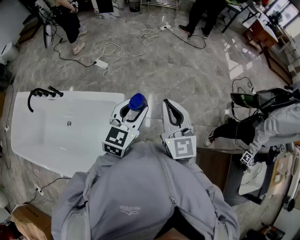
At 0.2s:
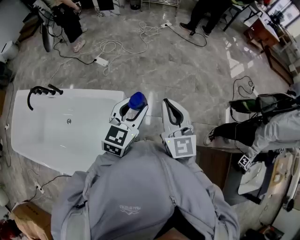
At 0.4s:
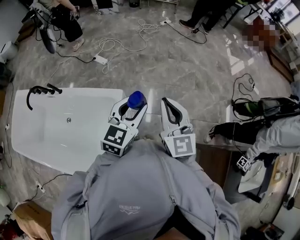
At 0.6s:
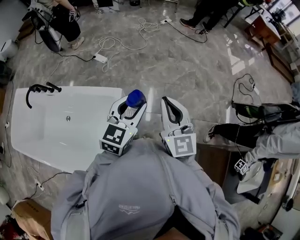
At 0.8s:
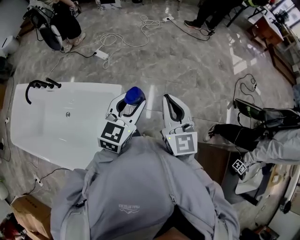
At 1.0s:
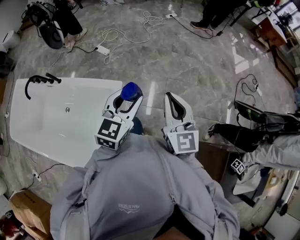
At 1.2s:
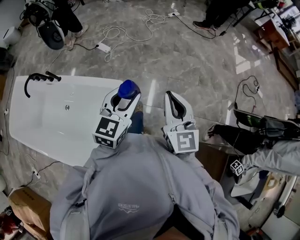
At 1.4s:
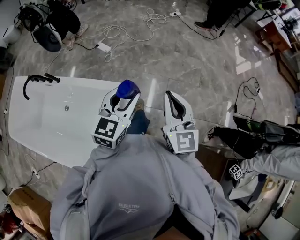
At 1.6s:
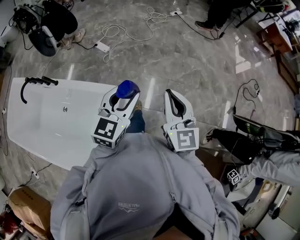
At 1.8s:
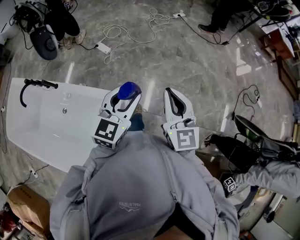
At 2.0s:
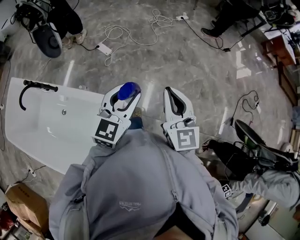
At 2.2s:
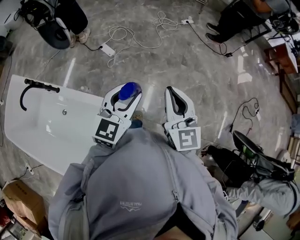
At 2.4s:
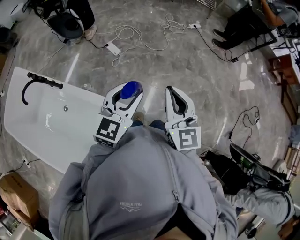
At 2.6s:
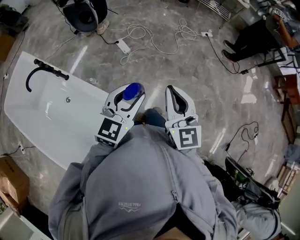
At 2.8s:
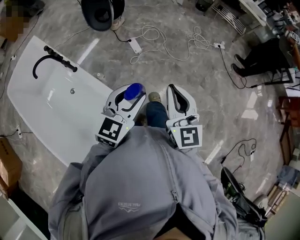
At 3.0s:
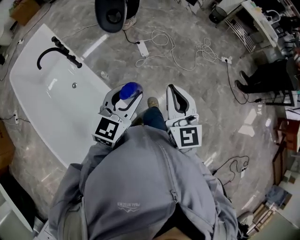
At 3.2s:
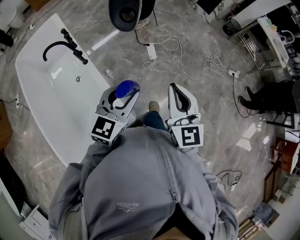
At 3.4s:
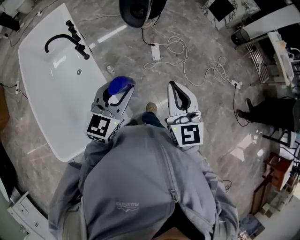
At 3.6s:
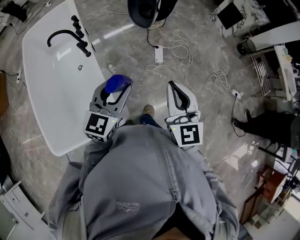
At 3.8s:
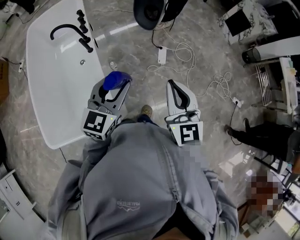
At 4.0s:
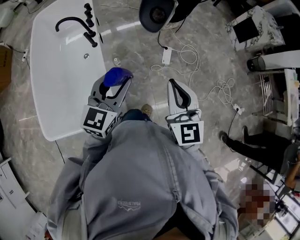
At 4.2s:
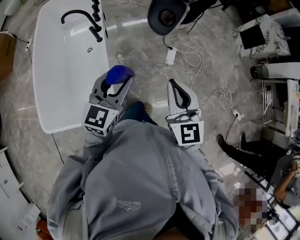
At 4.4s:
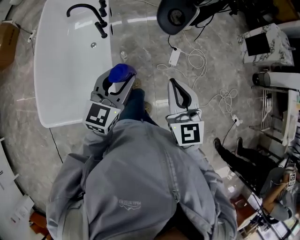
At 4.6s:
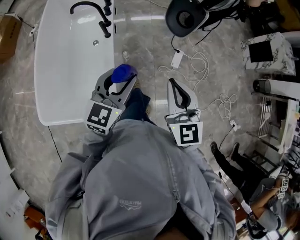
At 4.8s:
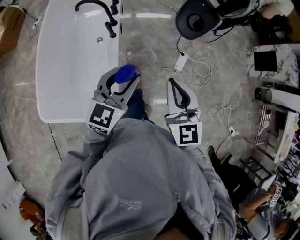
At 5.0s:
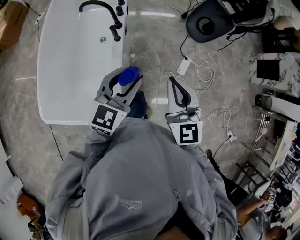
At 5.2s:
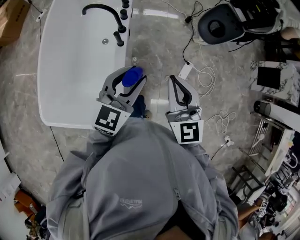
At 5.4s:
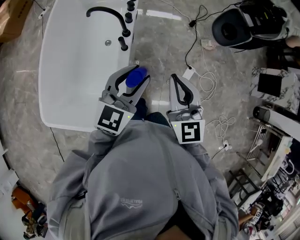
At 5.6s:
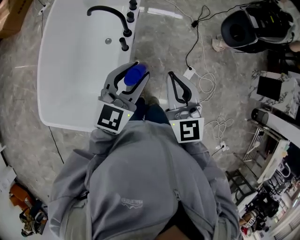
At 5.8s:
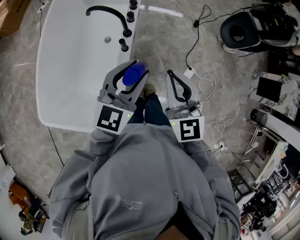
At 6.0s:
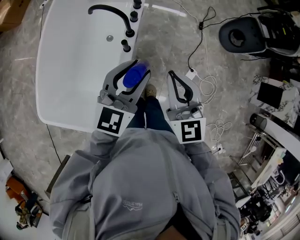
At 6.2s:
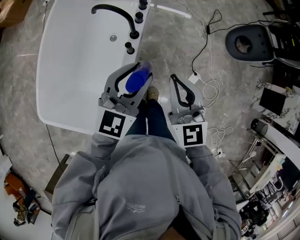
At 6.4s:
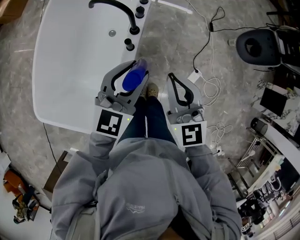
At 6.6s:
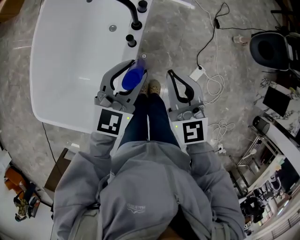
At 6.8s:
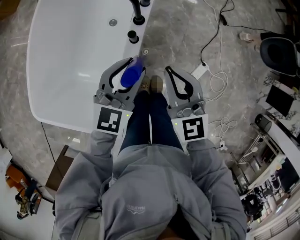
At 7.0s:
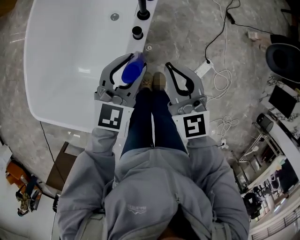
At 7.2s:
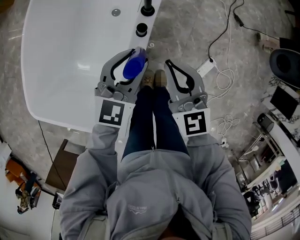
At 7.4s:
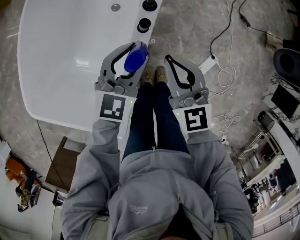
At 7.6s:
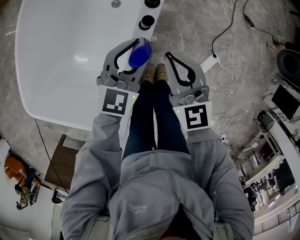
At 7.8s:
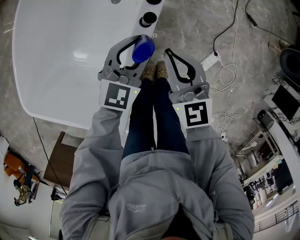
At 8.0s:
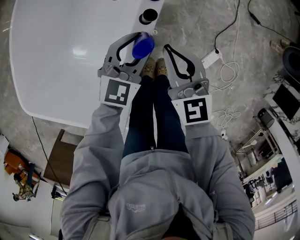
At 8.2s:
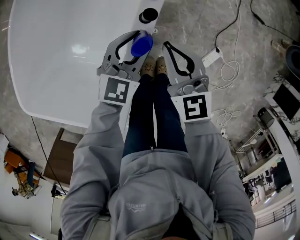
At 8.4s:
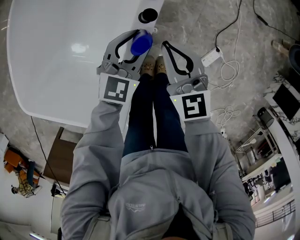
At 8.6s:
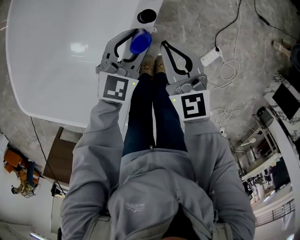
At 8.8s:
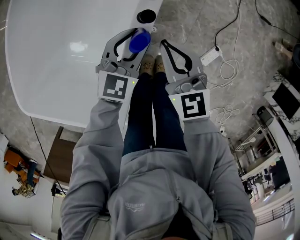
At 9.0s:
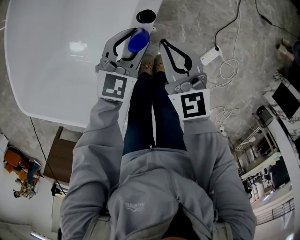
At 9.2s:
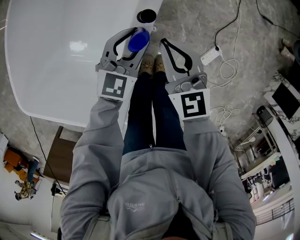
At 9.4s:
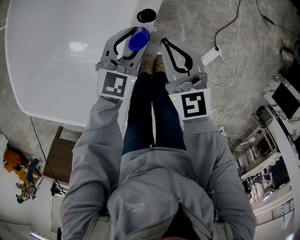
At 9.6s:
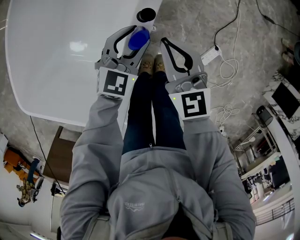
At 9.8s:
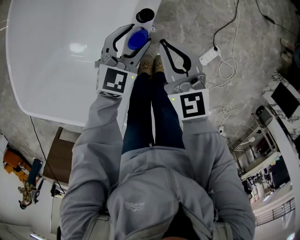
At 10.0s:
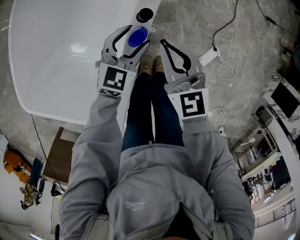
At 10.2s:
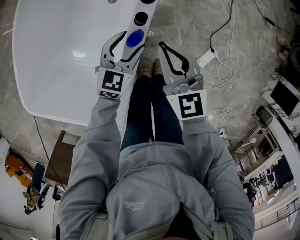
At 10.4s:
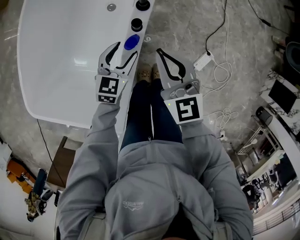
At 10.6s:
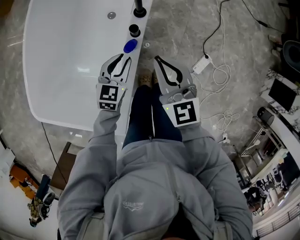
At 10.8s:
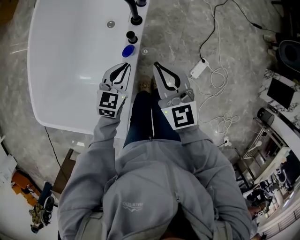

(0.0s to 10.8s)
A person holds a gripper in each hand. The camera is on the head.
0.0s - 1.6s: The grippers both shift forward by roughly 10 cm.
1.6s - 3.0s: The left gripper moves some 25 cm, and rotates approximately 30 degrees. Meanwhile the right gripper shifts by approximately 30 cm, and rotates some 30 degrees.
3.0s - 4.6s: The right gripper shifts by about 20 cm, and rotates some 40 degrees. The left gripper ends up some 20 cm from where it was, and turns by some 40 degrees.
4.6s - 6.2s: The right gripper heads forward and to the left, covering roughly 30 cm, while the left gripper shifts approximately 25 cm forward.
6.2s - 7.8s: Both grippers move downward, roughly 25 cm.
7.8s - 9.2s: The grippers make only small movements.
9.2s - 10.8s: The left gripper is displaced upward and backward by some 10 cm, and closes. The right gripper is displaced upward by some 15 cm.

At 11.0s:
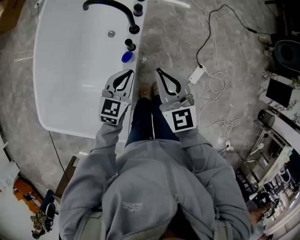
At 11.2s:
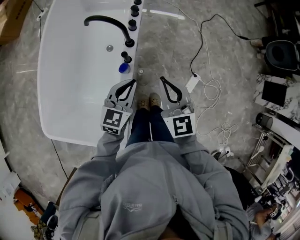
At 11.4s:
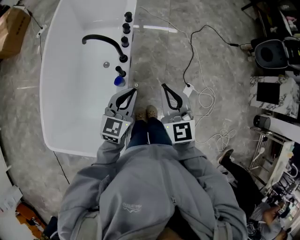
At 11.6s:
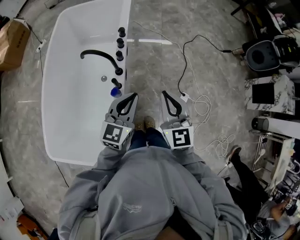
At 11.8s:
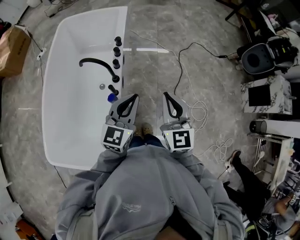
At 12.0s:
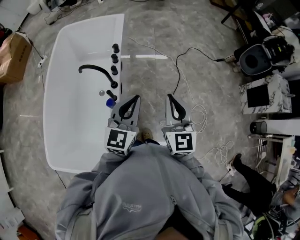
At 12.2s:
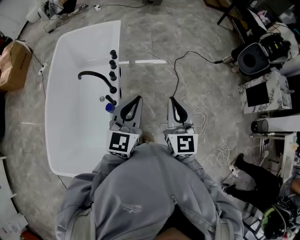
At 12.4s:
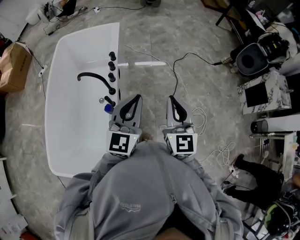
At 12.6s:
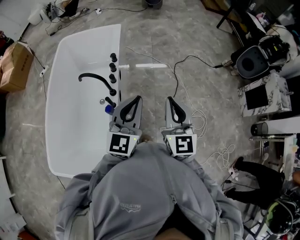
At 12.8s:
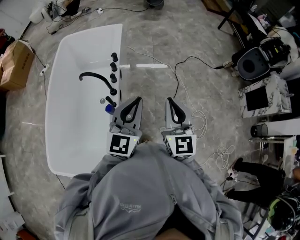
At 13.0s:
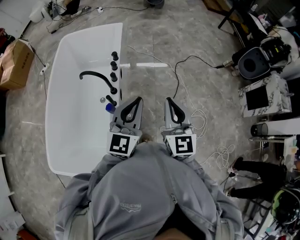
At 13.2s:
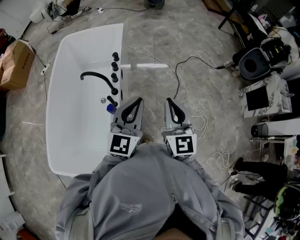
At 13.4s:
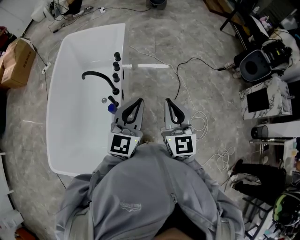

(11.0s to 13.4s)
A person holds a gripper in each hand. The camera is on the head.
11.0s - 12.2s: Both grippers move upward and to the right, about 30 cm. The left gripper turns by roughly 30 degrees, while the right gripper changes its angle by some 30 degrees.
12.2s - 13.4s: The grippers make only small movements.

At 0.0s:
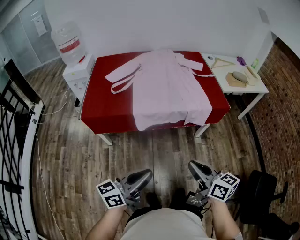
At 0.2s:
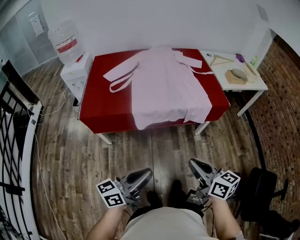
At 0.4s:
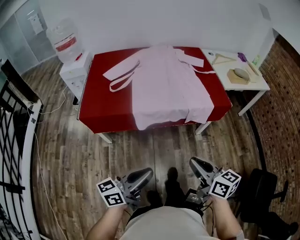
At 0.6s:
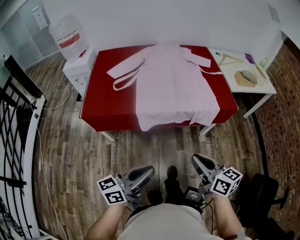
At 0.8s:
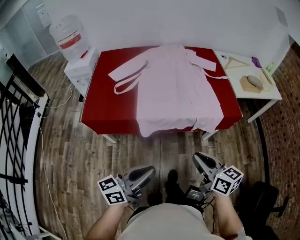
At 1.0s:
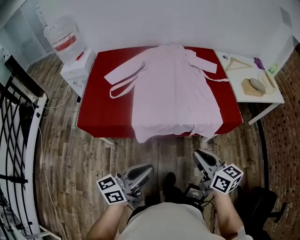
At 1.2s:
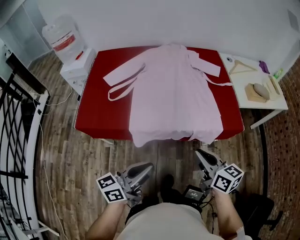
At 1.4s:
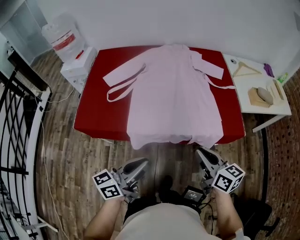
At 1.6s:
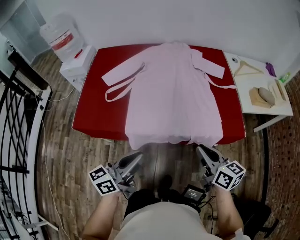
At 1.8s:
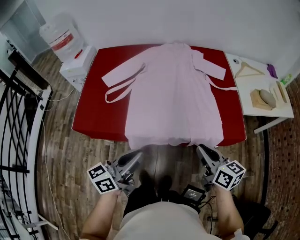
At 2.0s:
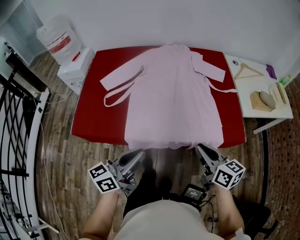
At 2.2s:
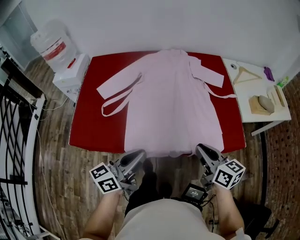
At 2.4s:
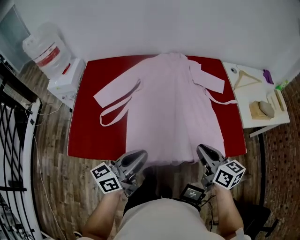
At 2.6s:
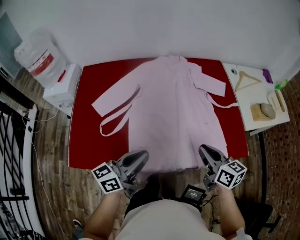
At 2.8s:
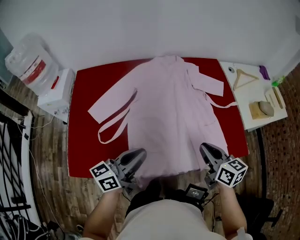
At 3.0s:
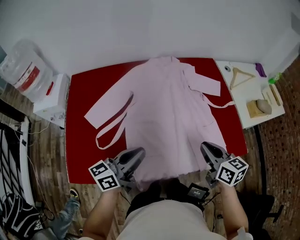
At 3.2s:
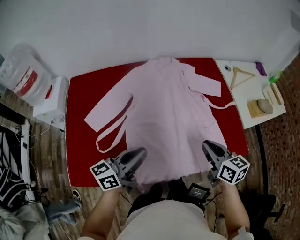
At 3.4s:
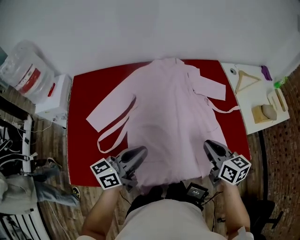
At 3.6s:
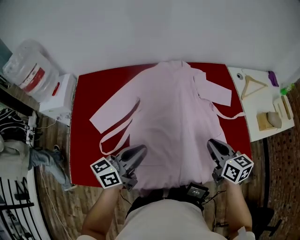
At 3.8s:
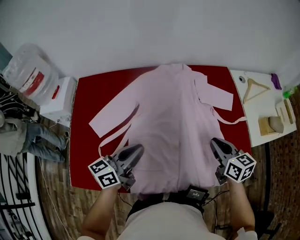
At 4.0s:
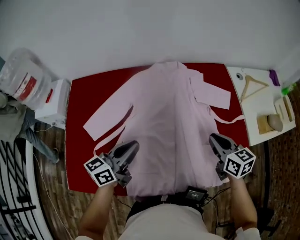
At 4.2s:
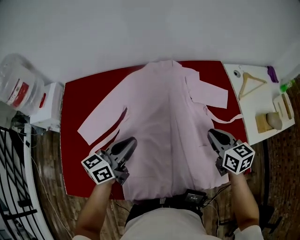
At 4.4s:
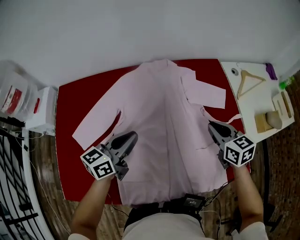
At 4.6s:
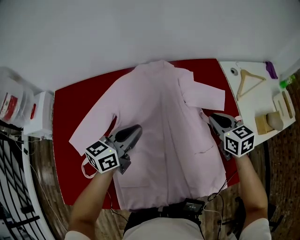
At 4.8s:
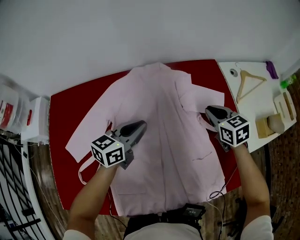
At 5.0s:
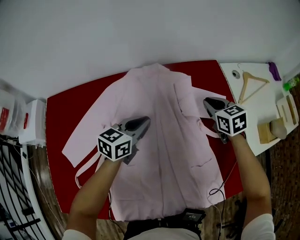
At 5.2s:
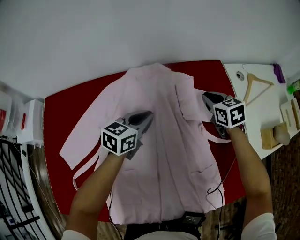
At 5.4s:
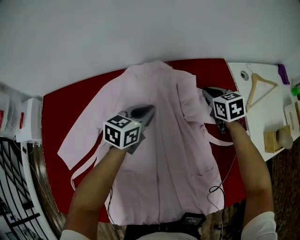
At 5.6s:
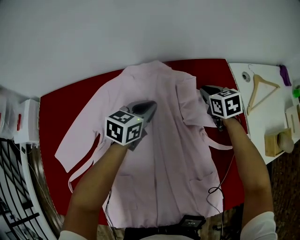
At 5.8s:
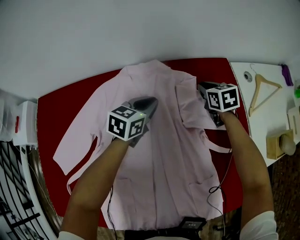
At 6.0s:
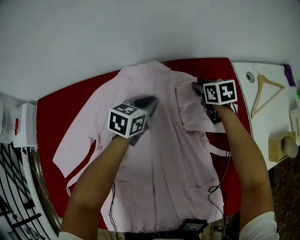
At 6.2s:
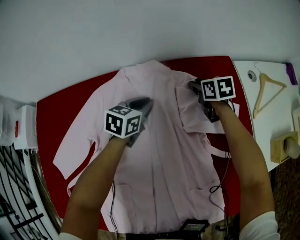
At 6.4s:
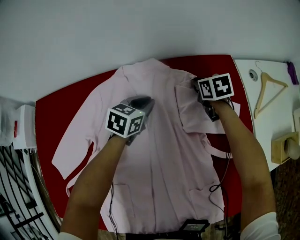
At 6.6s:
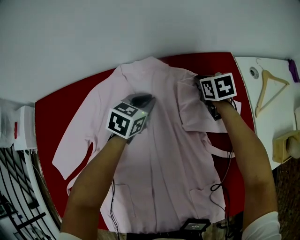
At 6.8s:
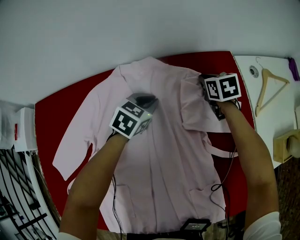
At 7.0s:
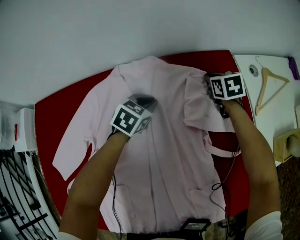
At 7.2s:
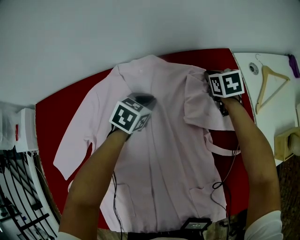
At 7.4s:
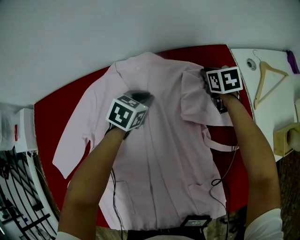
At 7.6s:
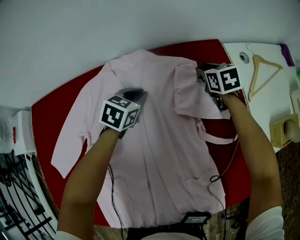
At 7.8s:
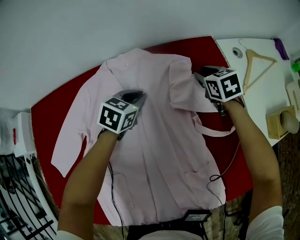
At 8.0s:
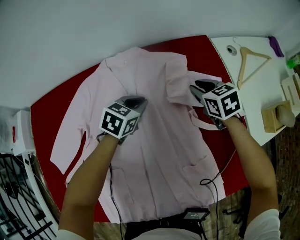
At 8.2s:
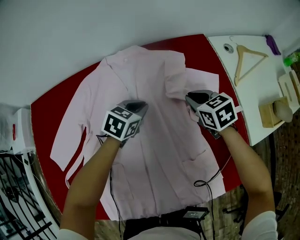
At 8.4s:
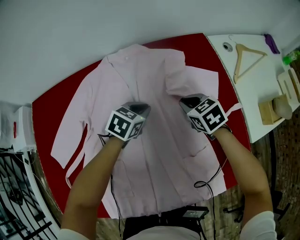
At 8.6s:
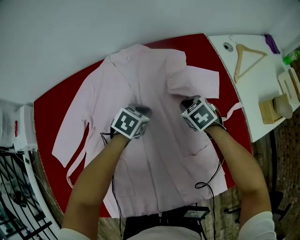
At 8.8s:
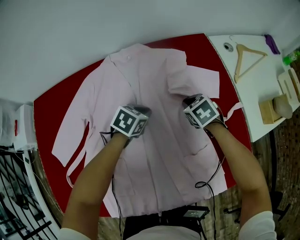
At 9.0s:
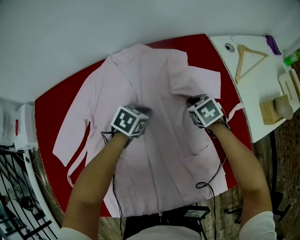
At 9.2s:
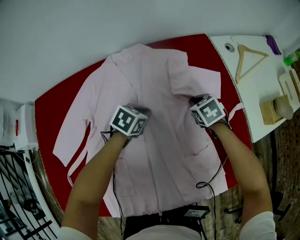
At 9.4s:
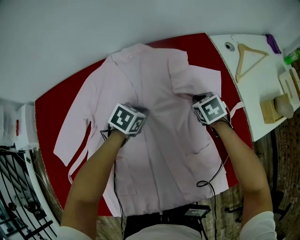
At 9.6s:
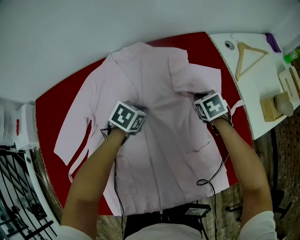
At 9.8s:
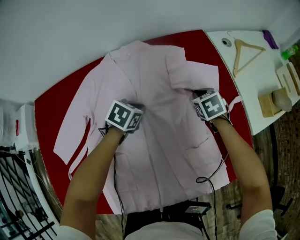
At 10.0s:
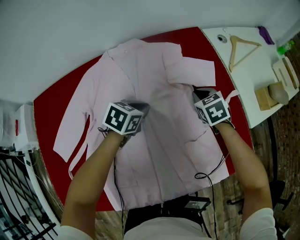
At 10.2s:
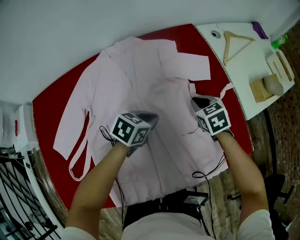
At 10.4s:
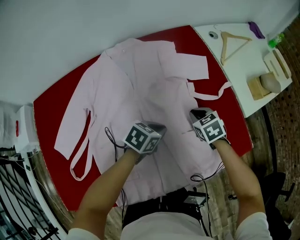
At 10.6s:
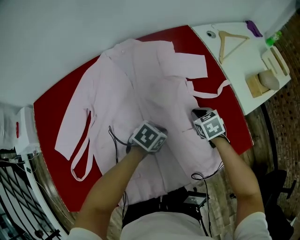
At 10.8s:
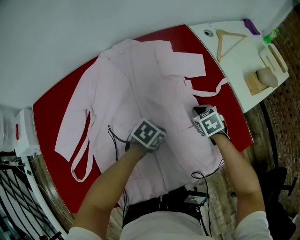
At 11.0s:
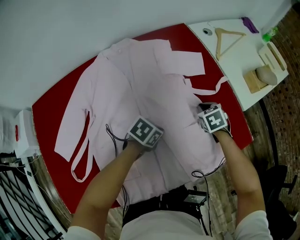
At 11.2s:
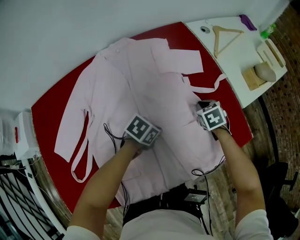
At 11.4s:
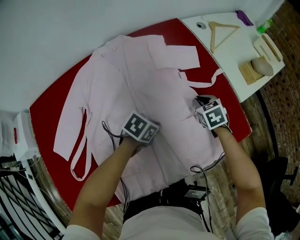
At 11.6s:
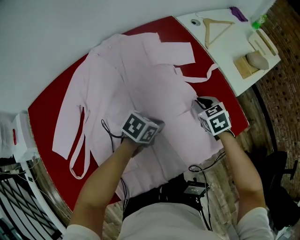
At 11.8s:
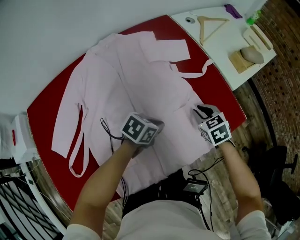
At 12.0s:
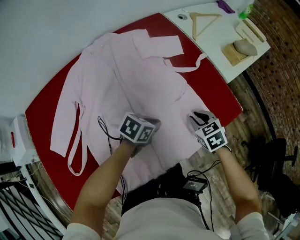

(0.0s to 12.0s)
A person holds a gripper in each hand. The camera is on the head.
0.0s - 1.6s: The grippers both shift forward by about 30 cm.
1.6s - 3.0s: The grippers both shift forward by approximately 20 cm.
3.0s - 4.4s: Both grippers move forward, roughly 20 cm.
4.4s - 6.0s: Both grippers travel together forward and downward, some 35 cm. The left gripper changes its angle by about 30 degrees; the right gripper opens its fingers.
6.0s - 7.6s: The right gripper shifts roughly 5 cm to the right.
7.6s - 9.0s: The left gripper moves backward, roughly 15 cm; the right gripper is displaced backward by roughly 20 cm.
9.0s - 10.4s: Both grippers travel together backward and to the right, roughly 15 cm.
10.4s - 12.0s: The right gripper moves to the right and backward, about 15 cm. The left gripper moves to the right and backward, roughly 10 cm.
